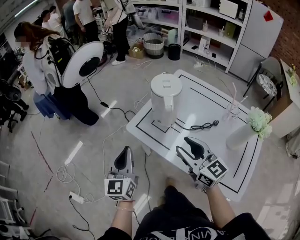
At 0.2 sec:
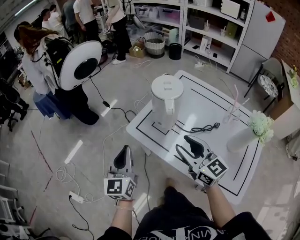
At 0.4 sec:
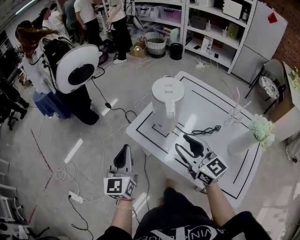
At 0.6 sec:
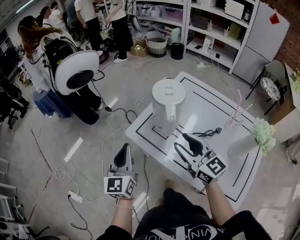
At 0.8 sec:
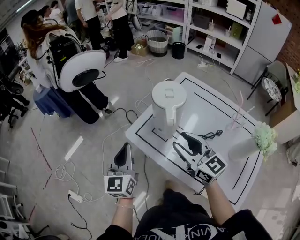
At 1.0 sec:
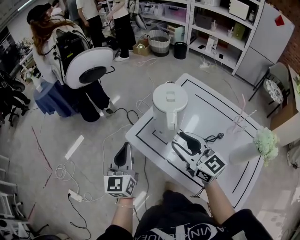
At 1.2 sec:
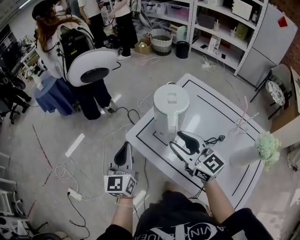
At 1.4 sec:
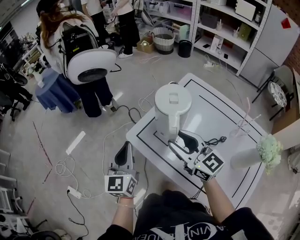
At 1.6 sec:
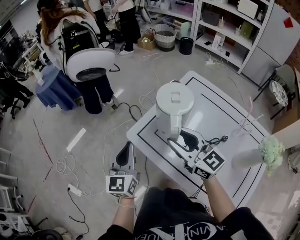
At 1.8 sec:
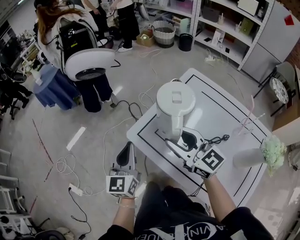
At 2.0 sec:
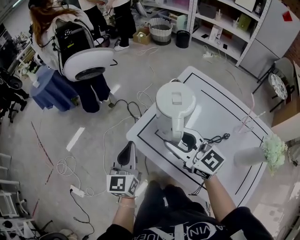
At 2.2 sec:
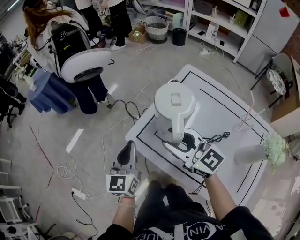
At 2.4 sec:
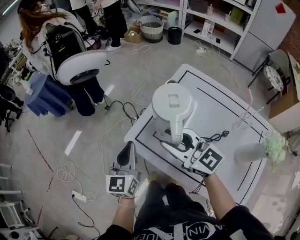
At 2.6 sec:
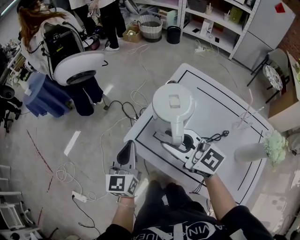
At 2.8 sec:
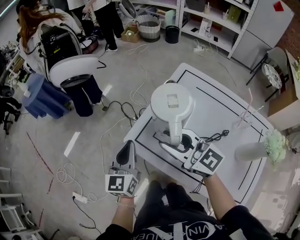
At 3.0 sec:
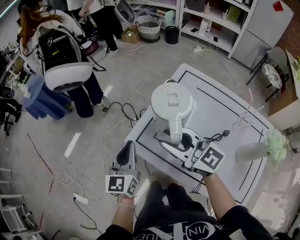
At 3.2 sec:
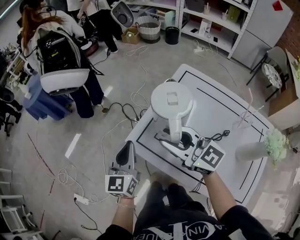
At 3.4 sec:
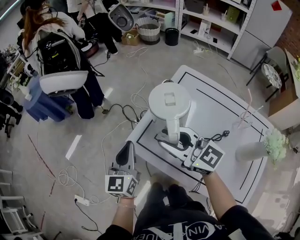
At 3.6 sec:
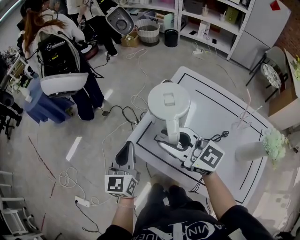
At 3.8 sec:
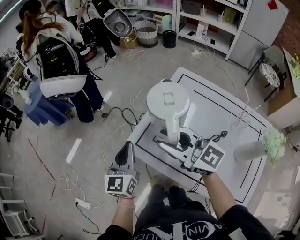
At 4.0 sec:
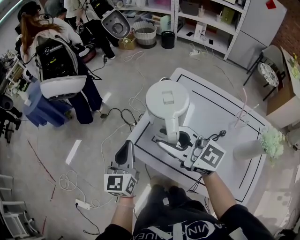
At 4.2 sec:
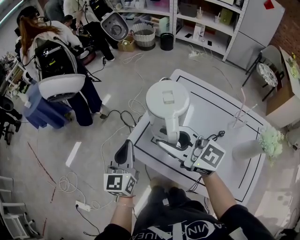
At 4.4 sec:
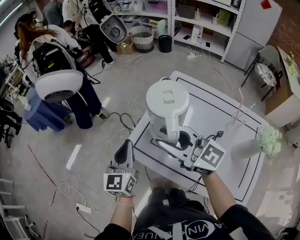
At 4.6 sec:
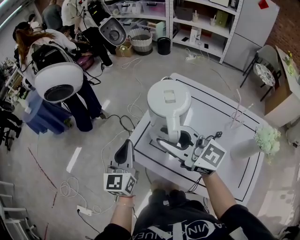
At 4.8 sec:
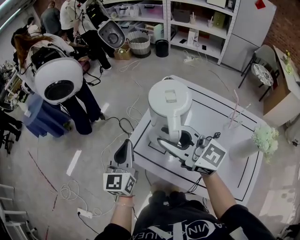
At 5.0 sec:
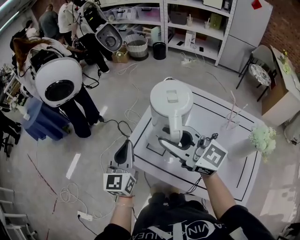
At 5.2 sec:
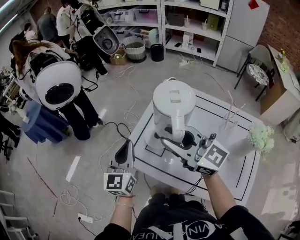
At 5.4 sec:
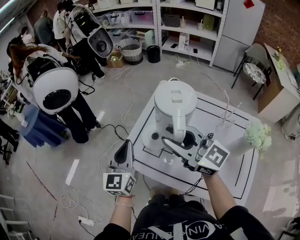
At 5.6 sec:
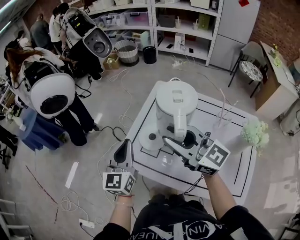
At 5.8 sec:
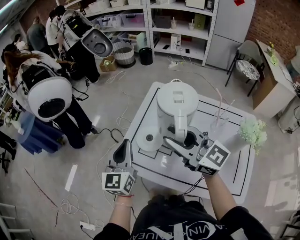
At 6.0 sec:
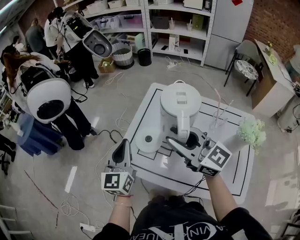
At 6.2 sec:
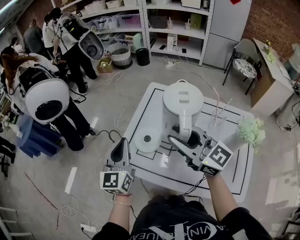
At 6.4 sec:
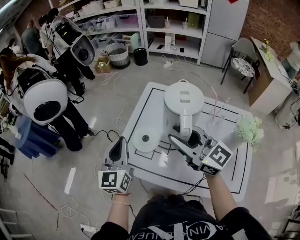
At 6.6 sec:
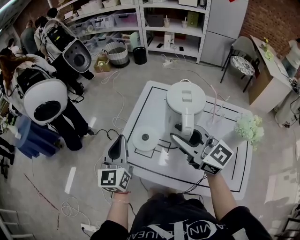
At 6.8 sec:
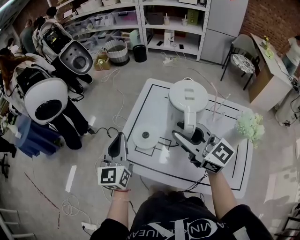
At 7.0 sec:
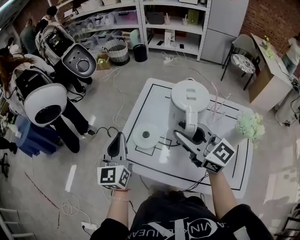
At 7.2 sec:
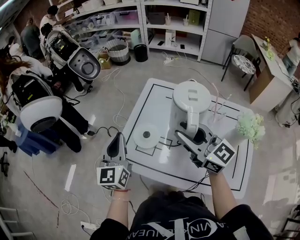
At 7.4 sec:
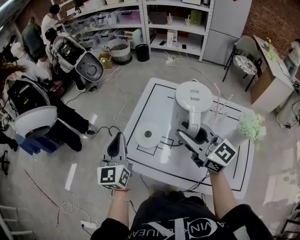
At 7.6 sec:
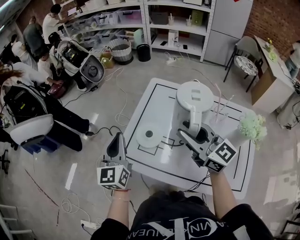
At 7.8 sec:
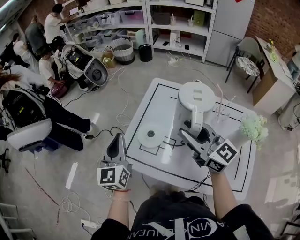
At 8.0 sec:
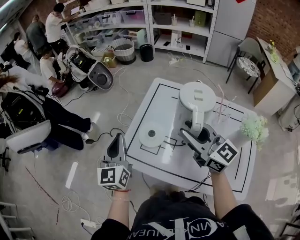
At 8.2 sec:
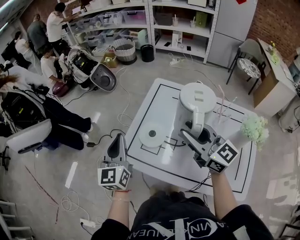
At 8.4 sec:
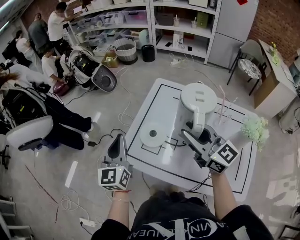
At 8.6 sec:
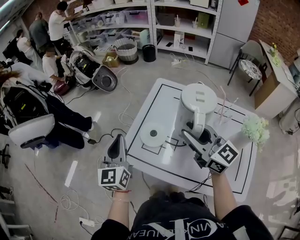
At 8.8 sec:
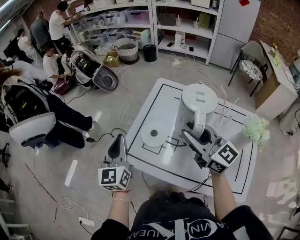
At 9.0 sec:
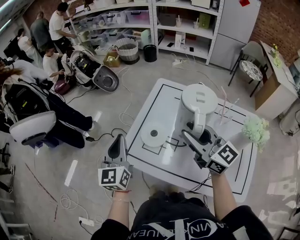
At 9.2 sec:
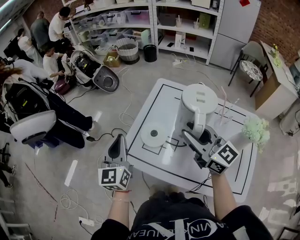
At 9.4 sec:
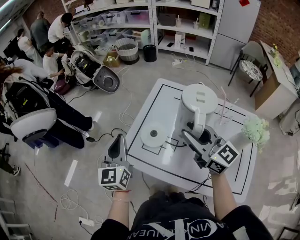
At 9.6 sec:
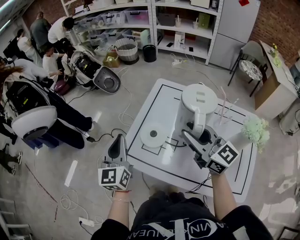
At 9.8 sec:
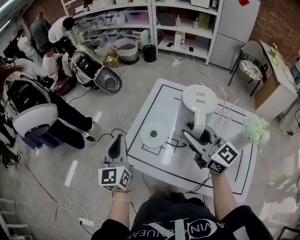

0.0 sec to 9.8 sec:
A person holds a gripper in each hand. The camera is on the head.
0.0 sec to 1.4 sec: The grippers both shift forward by approximately 10 cm.
1.4 sec to 2.8 sec: The right gripper changes place by some 5 cm. The left gripper shifts by some 5 cm.
2.8 sec to 4.2 sec: There are only small adjustments of the grippers.
4.2 sec to 5.6 sec: Both grippers move to the right, roughly 5 cm.
5.6 sec to 7.0 sec: The right gripper goes roughly 5 cm to the right.
7.0 sec to 8.4 sec: There are only small adjustments of the grippers.
8.4 sec to 9.8 sec: The two grippers keep their place.

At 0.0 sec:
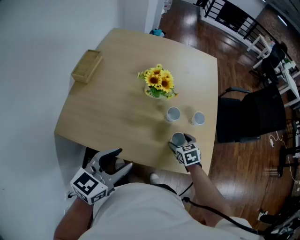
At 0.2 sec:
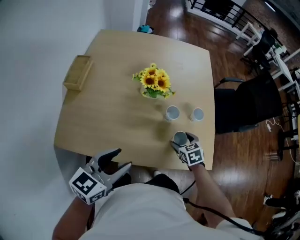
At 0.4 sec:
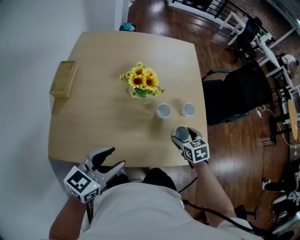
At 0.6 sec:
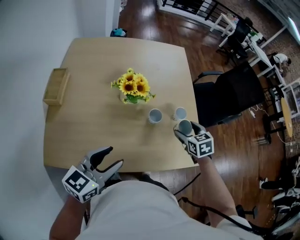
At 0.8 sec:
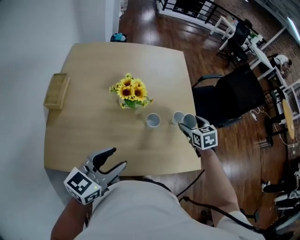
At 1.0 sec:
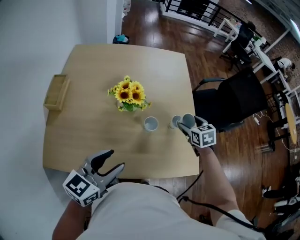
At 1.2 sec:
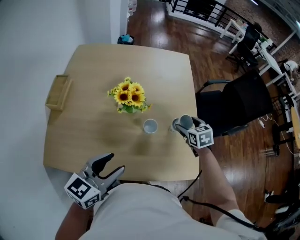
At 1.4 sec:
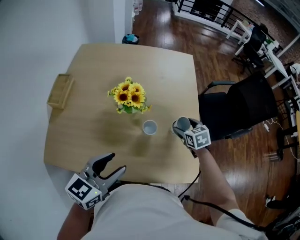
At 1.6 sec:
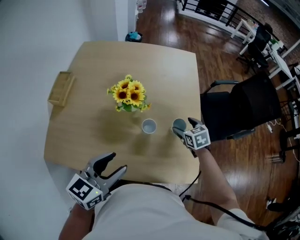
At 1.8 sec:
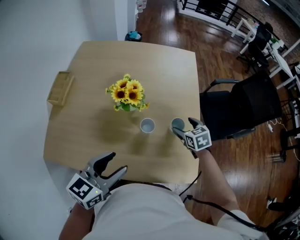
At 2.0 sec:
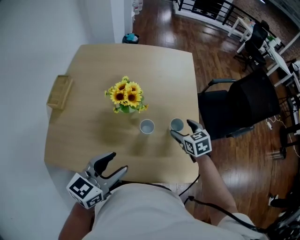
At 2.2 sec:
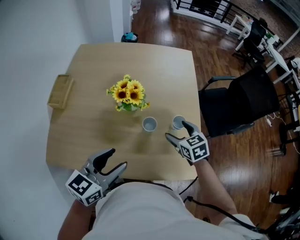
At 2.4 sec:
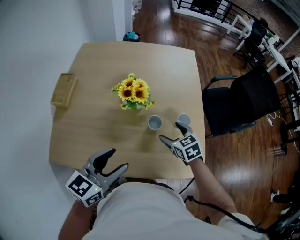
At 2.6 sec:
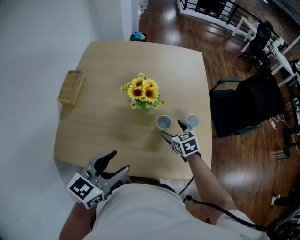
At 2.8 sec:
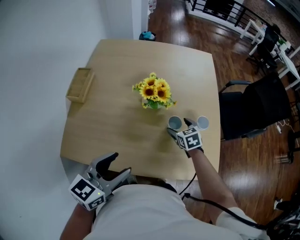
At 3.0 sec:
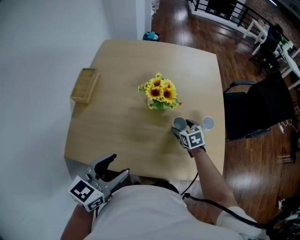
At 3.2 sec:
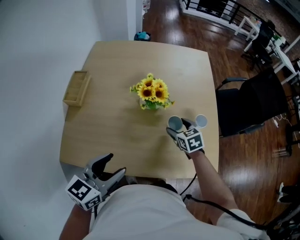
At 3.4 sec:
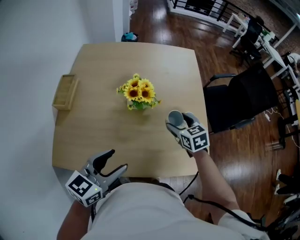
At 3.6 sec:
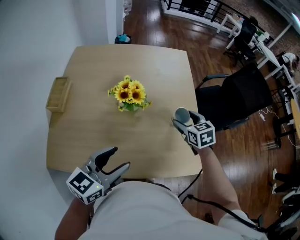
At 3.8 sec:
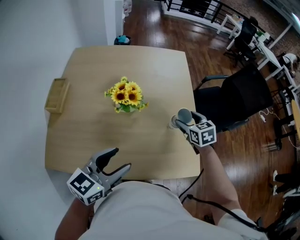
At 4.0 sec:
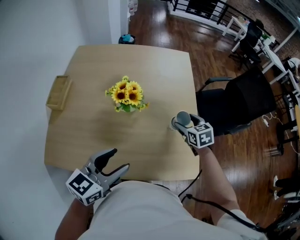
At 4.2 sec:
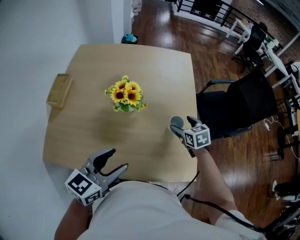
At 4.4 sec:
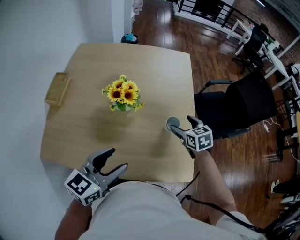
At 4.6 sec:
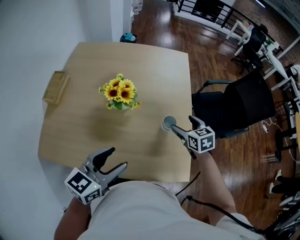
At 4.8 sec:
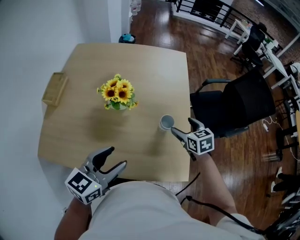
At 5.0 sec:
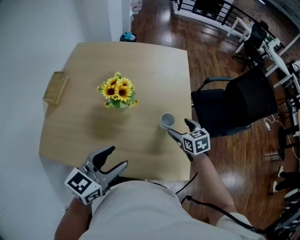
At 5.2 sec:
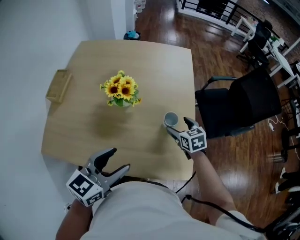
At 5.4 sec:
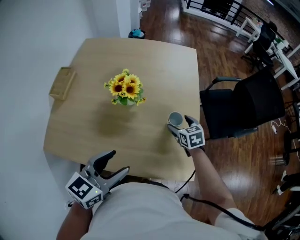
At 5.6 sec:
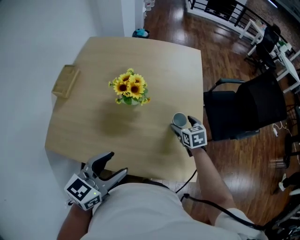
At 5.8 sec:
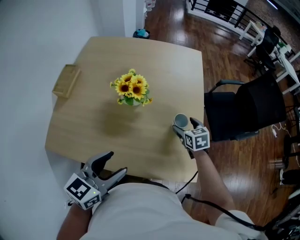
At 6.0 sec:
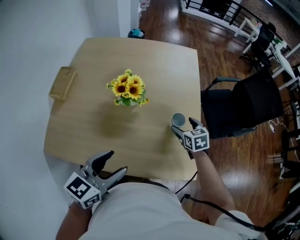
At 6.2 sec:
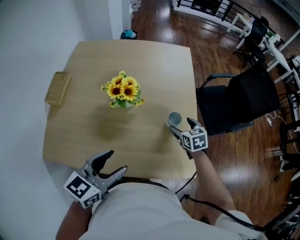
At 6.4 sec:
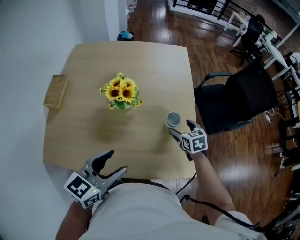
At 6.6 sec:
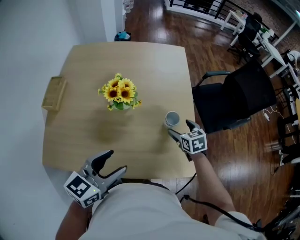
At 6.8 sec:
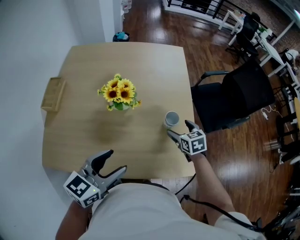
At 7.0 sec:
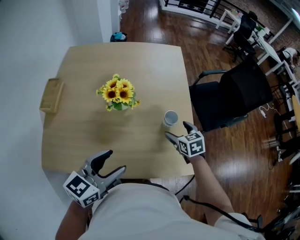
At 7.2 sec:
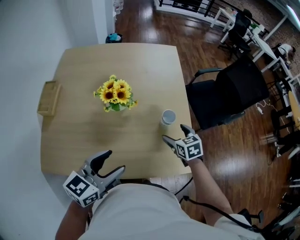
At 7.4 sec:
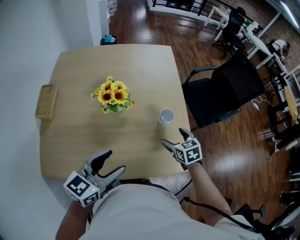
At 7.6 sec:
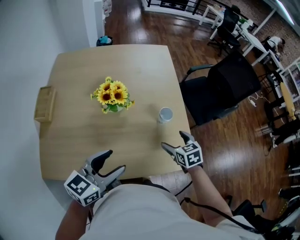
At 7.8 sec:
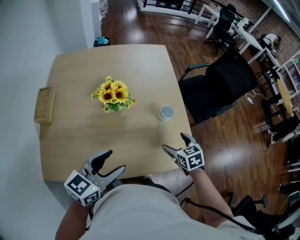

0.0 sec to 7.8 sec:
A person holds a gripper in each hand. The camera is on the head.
0.0 sec to 1.6 sec: The left gripper goes about 10 cm forward; the right gripper travels forward by roughly 20 cm.
1.6 sec to 3.2 sec: The grippers both shift to the left by roughly 15 cm.
3.2 sec to 4.6 sec: Both grippers travel together to the right, about 15 cm.
4.6 sec to 6.2 sec: The right gripper shifts about 5 cm downward.
6.2 sec to 7.8 sec: The right gripper moves backward, approximately 15 cm.

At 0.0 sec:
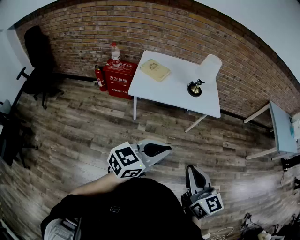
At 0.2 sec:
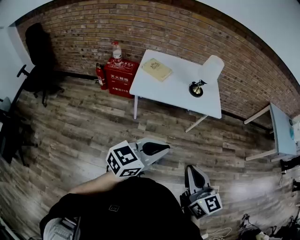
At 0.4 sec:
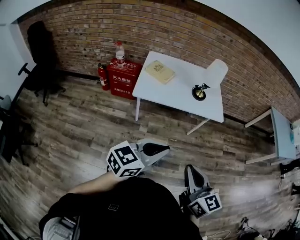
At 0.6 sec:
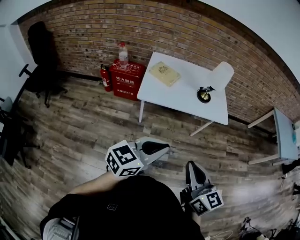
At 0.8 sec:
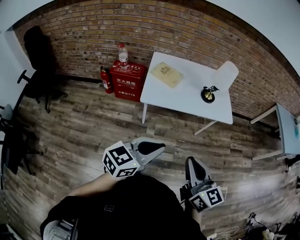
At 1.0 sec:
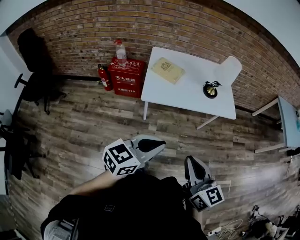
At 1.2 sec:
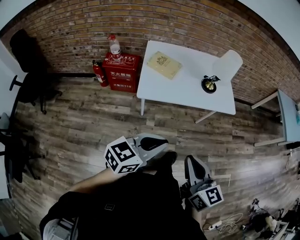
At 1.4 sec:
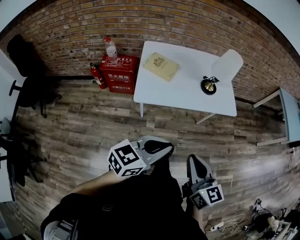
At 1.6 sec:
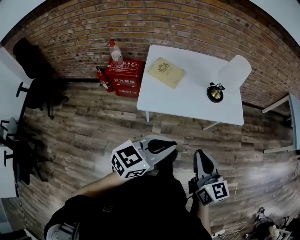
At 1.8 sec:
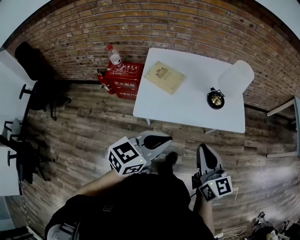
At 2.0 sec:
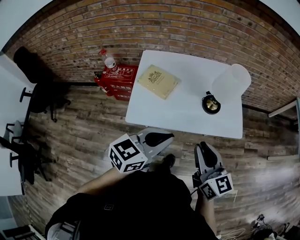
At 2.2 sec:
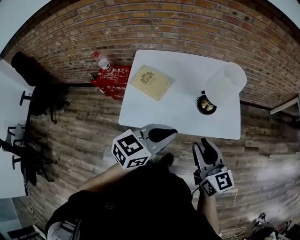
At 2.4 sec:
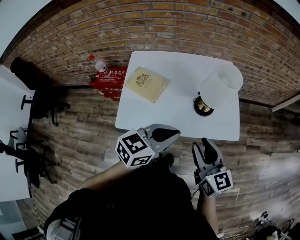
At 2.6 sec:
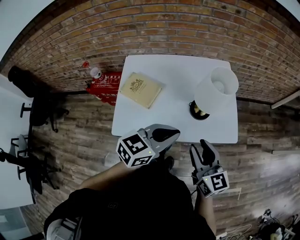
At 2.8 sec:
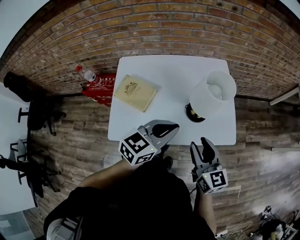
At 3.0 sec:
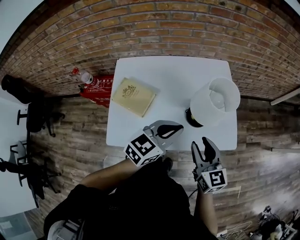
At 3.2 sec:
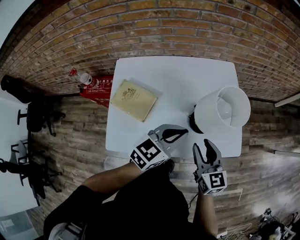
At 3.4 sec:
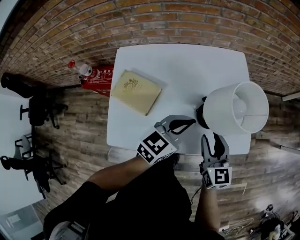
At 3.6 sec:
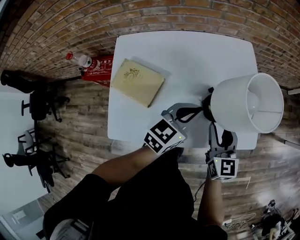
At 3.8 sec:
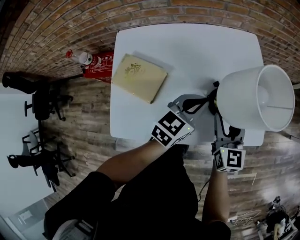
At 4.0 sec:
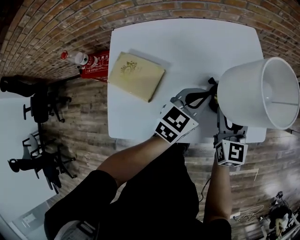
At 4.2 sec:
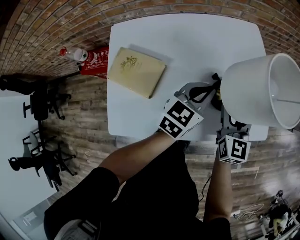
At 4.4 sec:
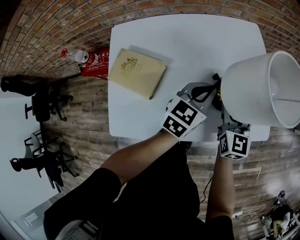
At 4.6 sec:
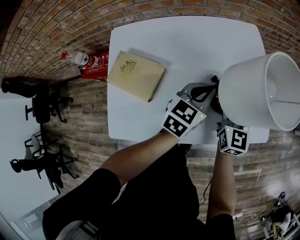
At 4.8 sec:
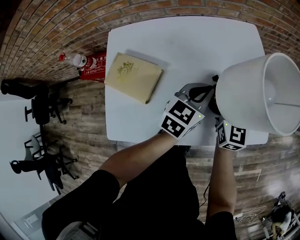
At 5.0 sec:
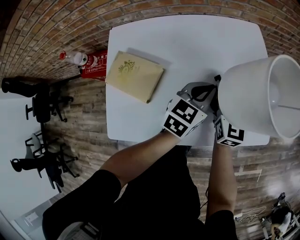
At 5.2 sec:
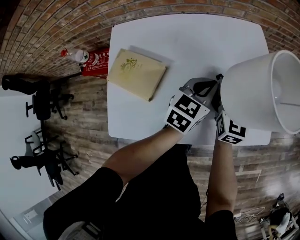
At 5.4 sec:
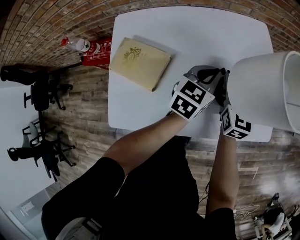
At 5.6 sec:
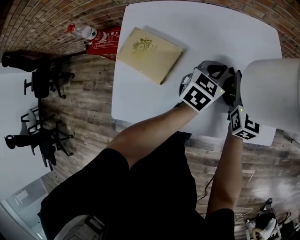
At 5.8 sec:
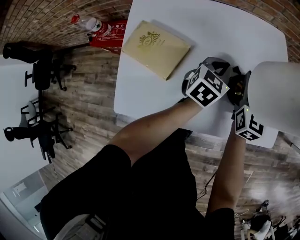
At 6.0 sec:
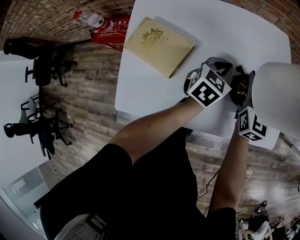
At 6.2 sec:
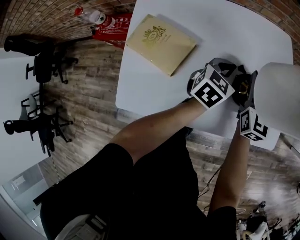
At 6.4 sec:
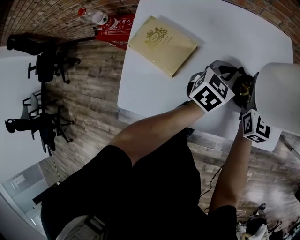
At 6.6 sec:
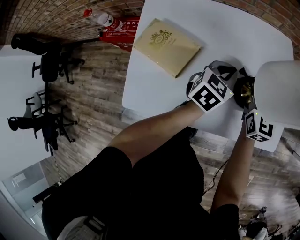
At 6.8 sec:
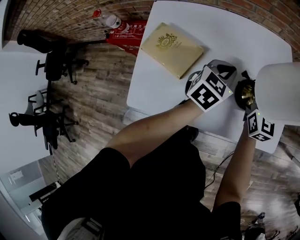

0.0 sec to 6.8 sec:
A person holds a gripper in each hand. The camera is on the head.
0.0 sec to 1.4 sec: Both grippers travel together to the left and forward, roughly 20 cm.
1.4 sec to 2.8 sec: The pair of grippers is taken forward, some 40 cm. The right gripper opens its fingers.
2.8 sec to 4.0 sec: The right gripper moves forward and downward, about 20 cm, and swivels approximately 20 degrees. The left gripper moves downward and forward, some 20 cm.
4.0 sec to 5.4 sec: The two grippers go approximately 5 cm forward.
5.4 sec to 6.8 sec: The right gripper closes up, while the left gripper ends up roughly 5 cm from where it was.
